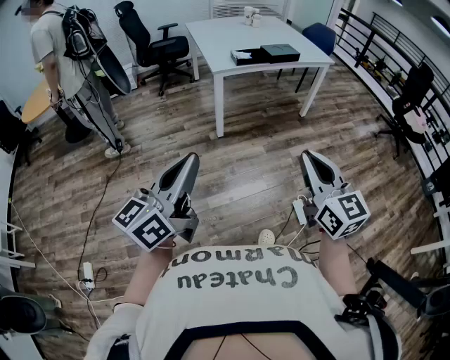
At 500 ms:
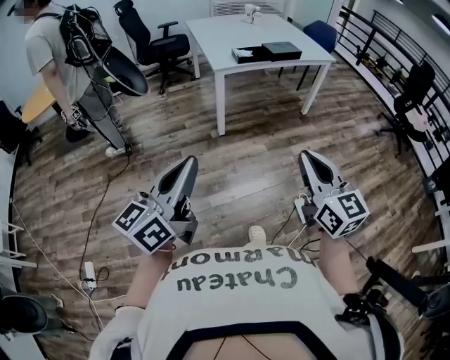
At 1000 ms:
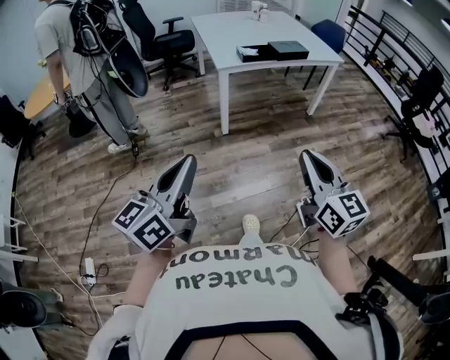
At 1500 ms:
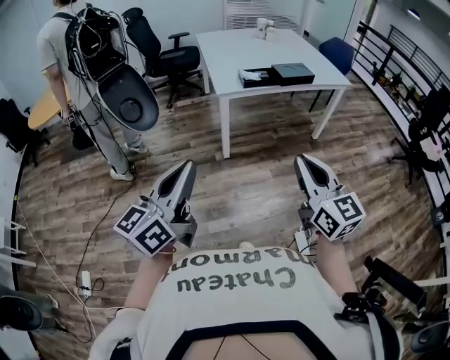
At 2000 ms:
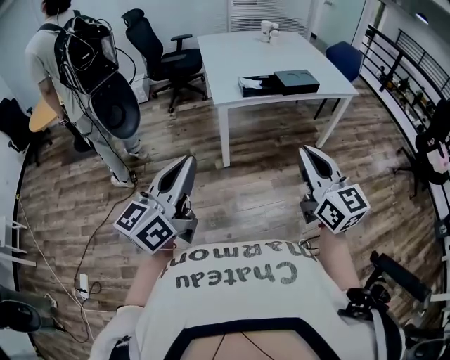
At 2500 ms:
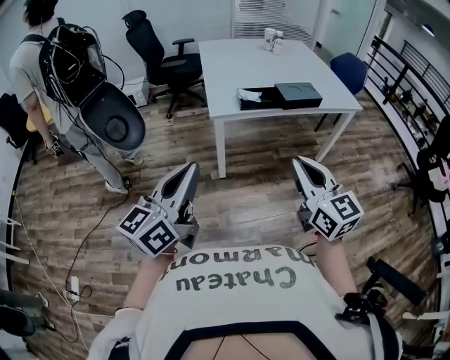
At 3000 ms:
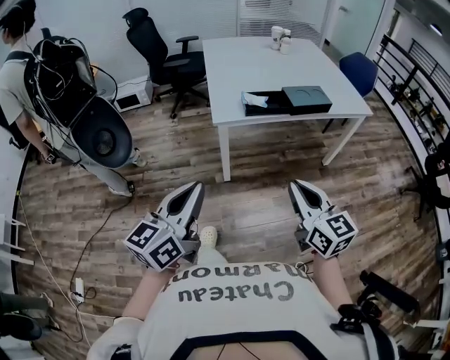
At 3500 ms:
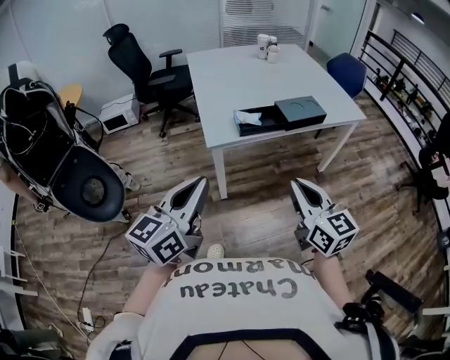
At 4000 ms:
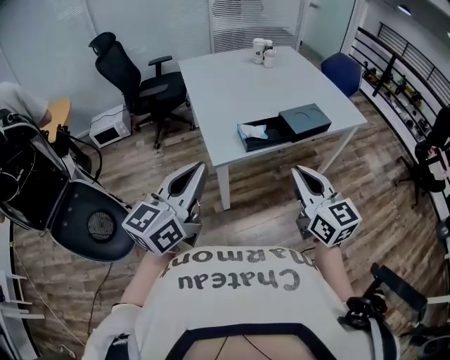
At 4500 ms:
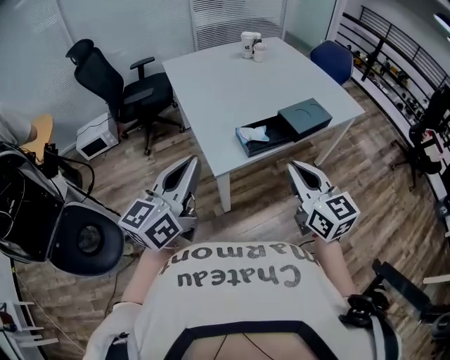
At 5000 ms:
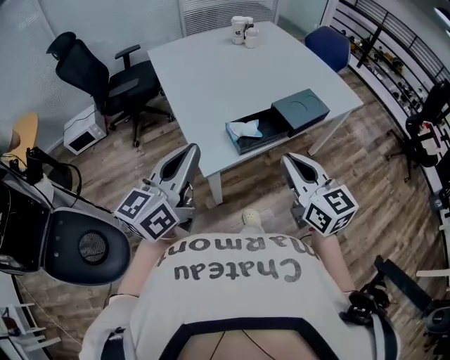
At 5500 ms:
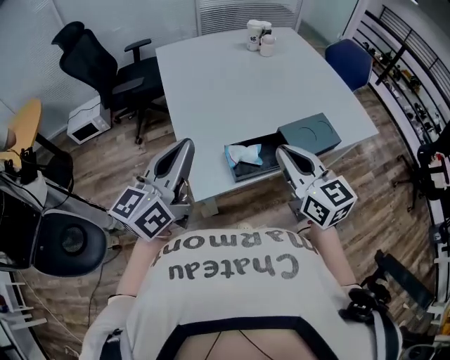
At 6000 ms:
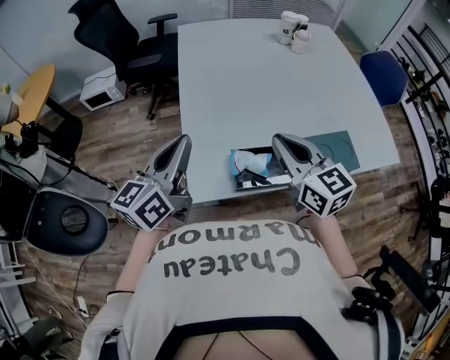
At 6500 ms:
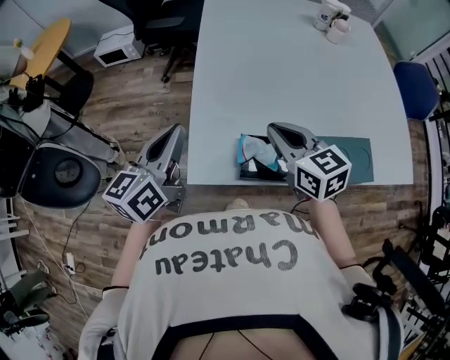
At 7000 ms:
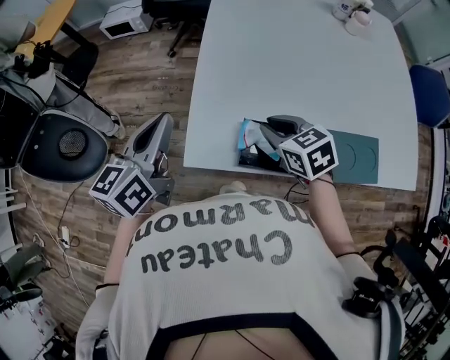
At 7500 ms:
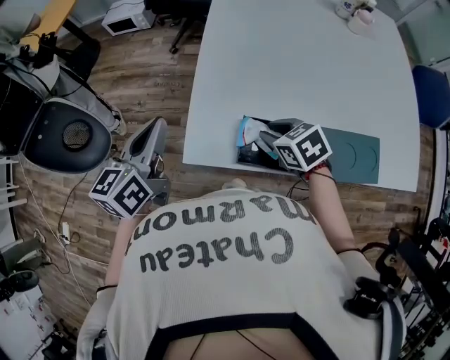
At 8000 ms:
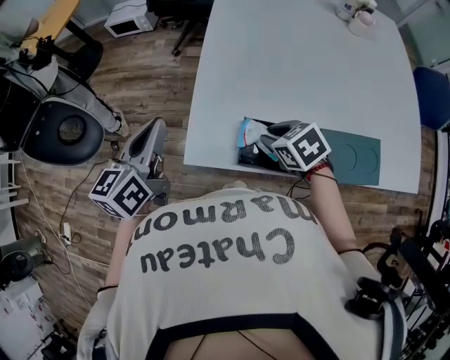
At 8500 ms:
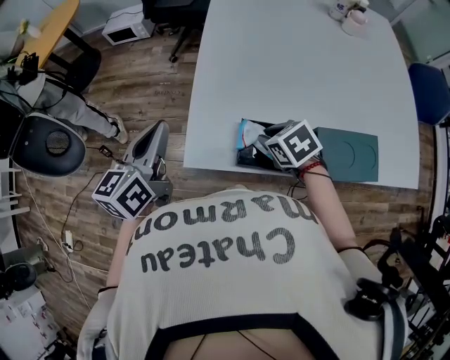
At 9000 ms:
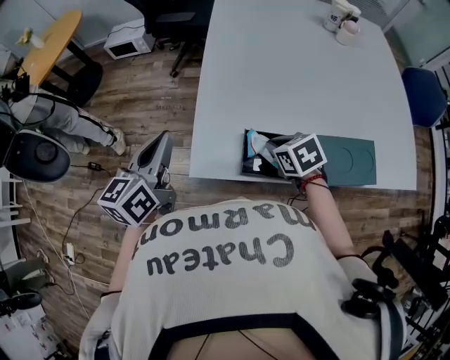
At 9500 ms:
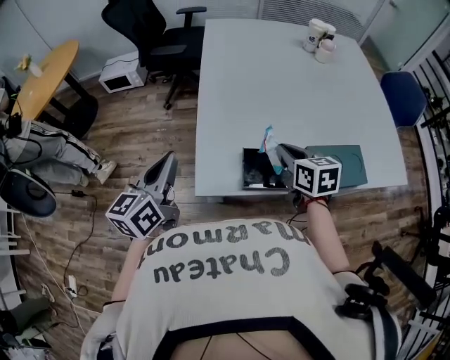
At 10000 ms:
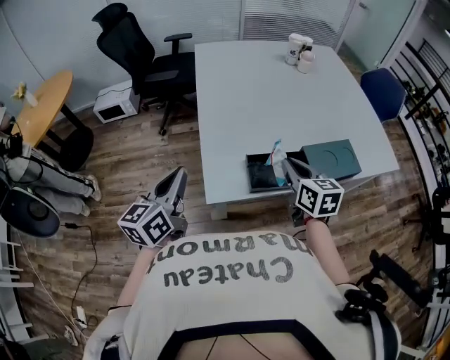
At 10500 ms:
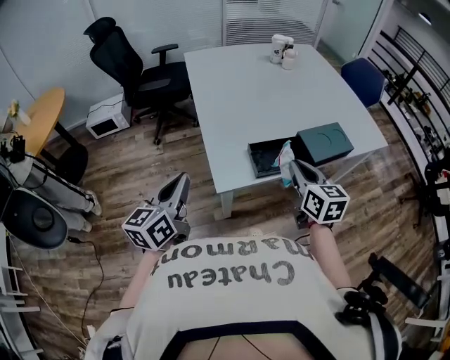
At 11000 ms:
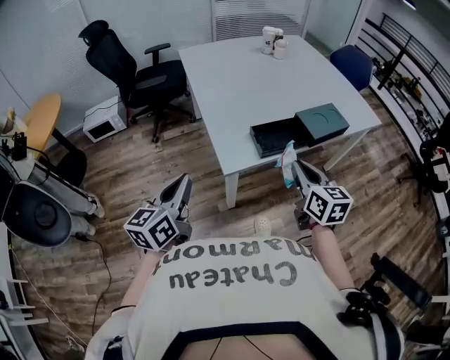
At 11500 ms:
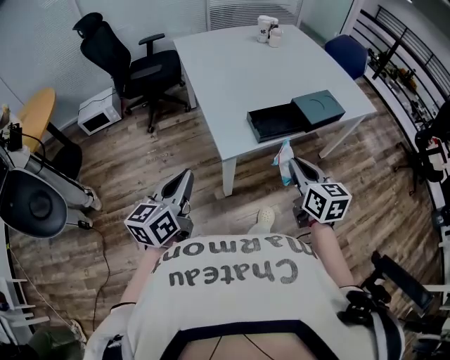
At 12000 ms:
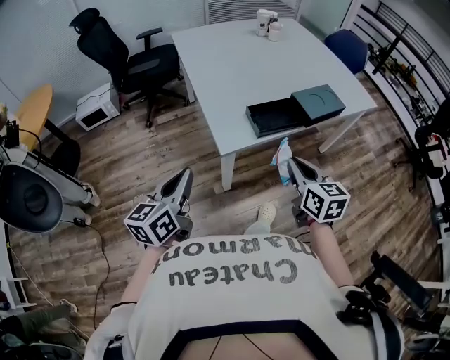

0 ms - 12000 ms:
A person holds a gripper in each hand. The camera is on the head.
0 ms - 2000 ms: Both grippers move forward, about 25 cm.
2000 ms - 4000 ms: Both grippers travel together forward, about 30 cm.
4000 ms - 6000 ms: Both grippers travel together forward, approximately 35 cm. The right gripper swivels some 20 degrees.
6000 ms - 8000 ms: The left gripper shifts by roughly 10 cm, and swivels about 30 degrees. Meanwhile the right gripper goes some 20 cm downward, tilts its fingers roughly 50 degrees downward, and opens up.
8000 ms - 10000 ms: The left gripper shifts by about 5 cm; the right gripper travels upward by roughly 15 cm, and tips its fingers upward by about 30 degrees.
10000 ms - 12000 ms: The grippers both shift backward by about 20 cm.

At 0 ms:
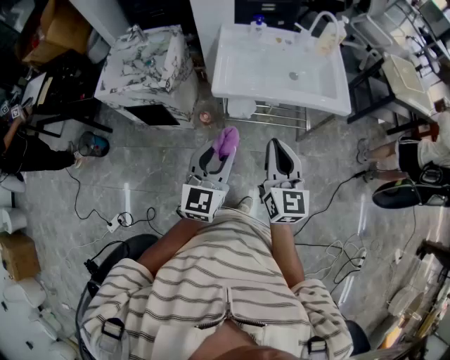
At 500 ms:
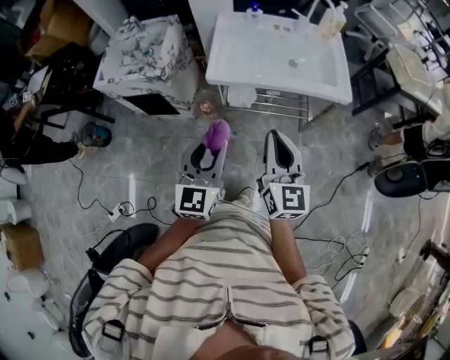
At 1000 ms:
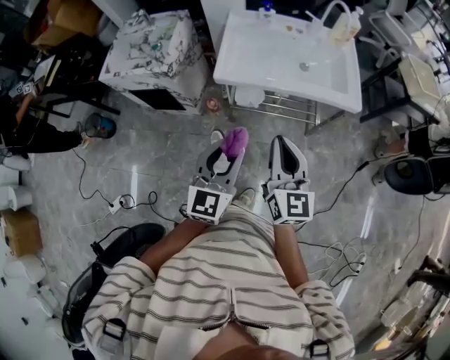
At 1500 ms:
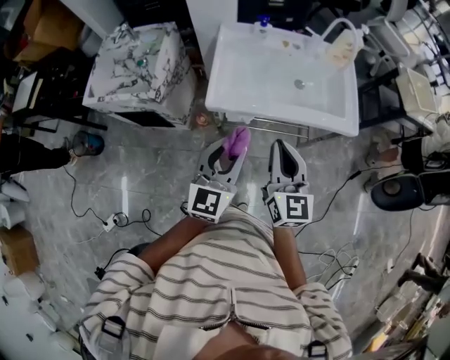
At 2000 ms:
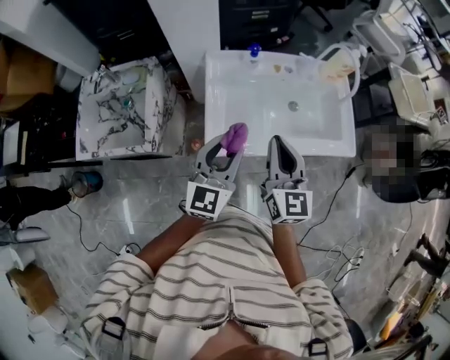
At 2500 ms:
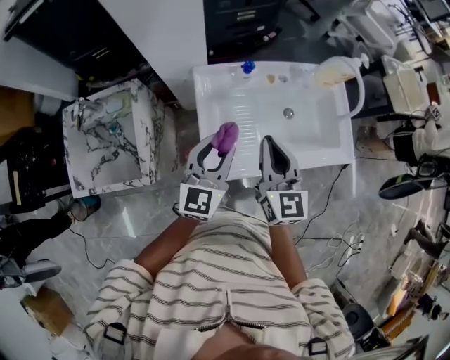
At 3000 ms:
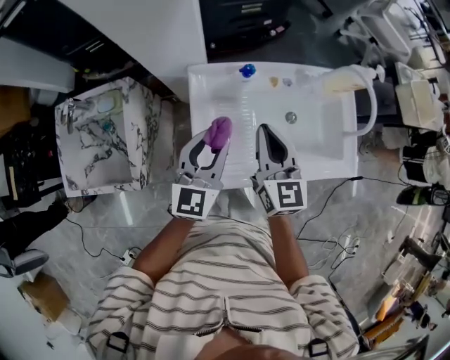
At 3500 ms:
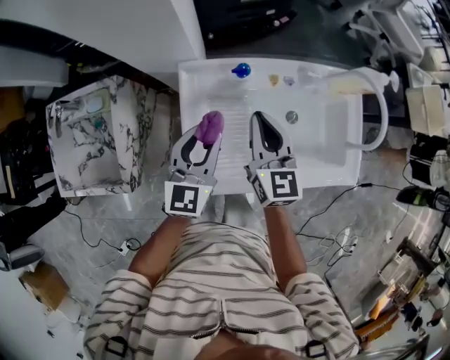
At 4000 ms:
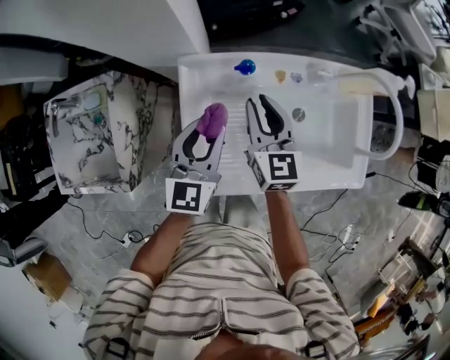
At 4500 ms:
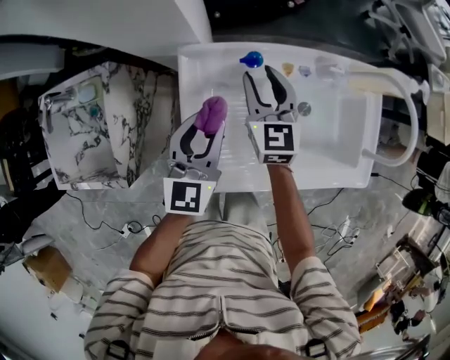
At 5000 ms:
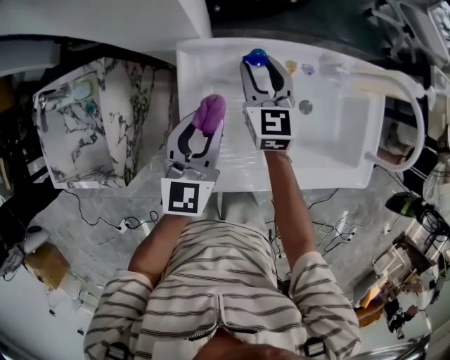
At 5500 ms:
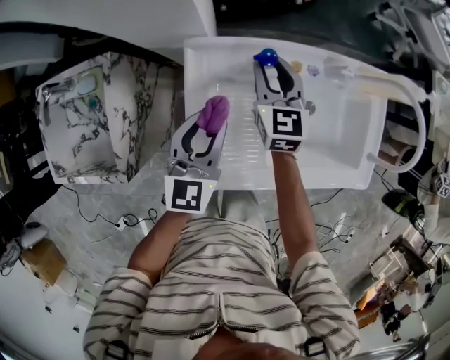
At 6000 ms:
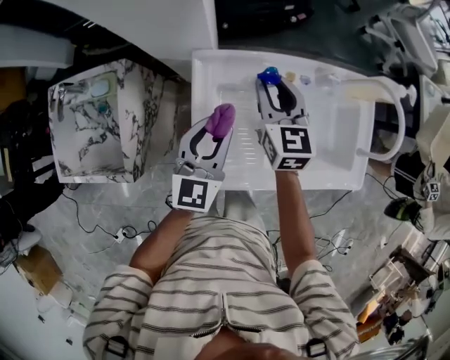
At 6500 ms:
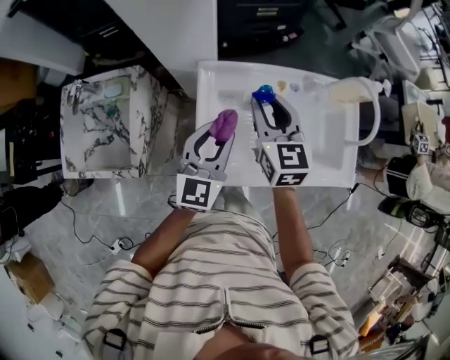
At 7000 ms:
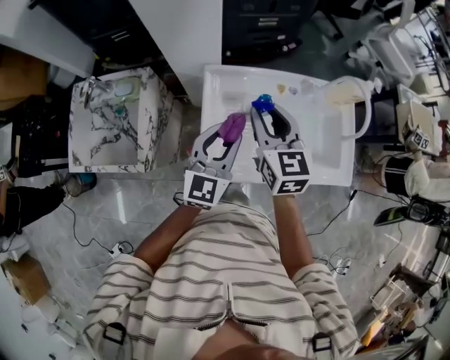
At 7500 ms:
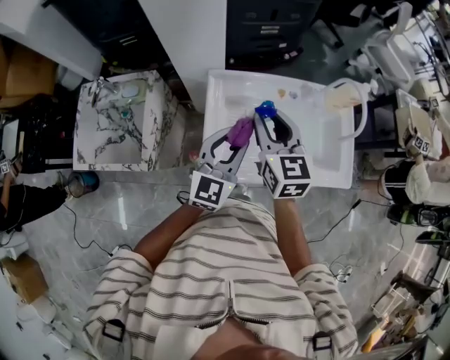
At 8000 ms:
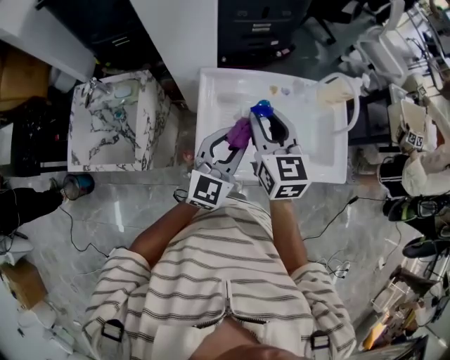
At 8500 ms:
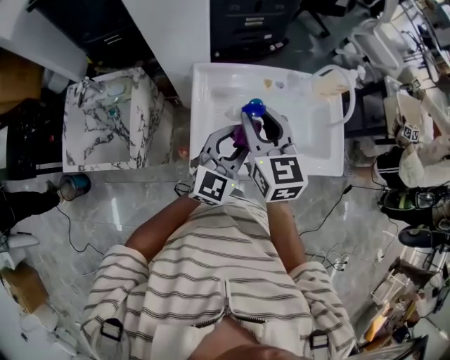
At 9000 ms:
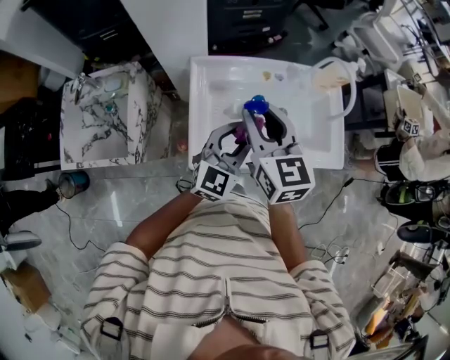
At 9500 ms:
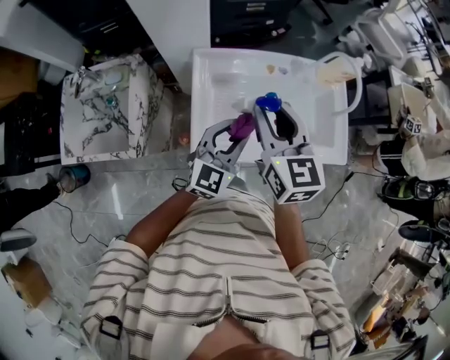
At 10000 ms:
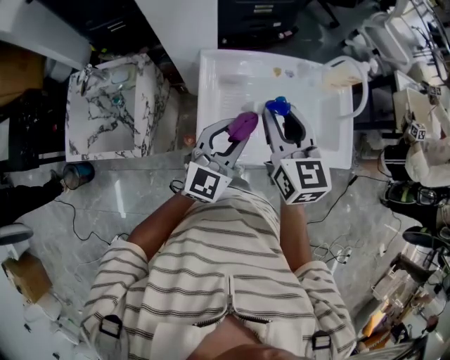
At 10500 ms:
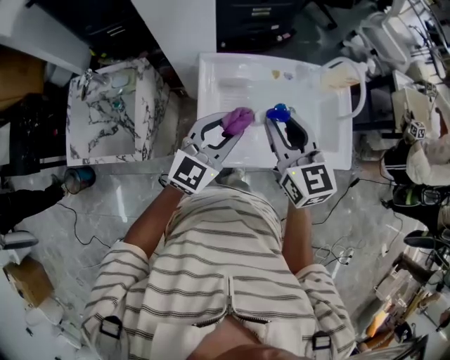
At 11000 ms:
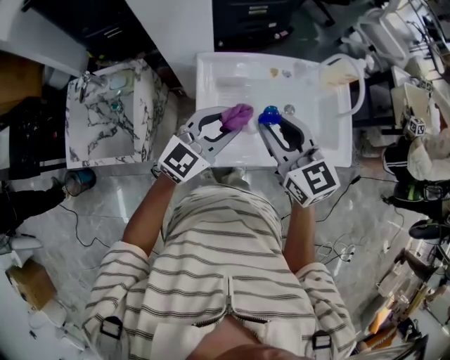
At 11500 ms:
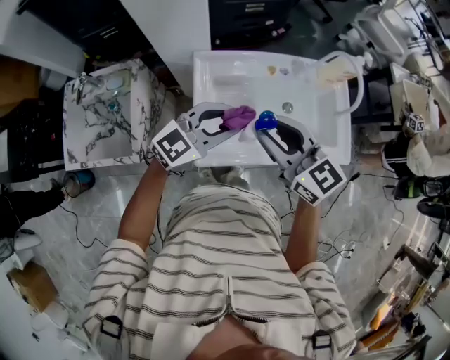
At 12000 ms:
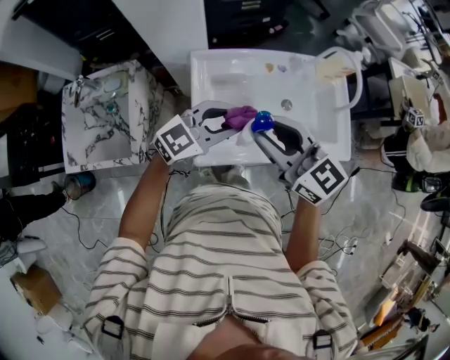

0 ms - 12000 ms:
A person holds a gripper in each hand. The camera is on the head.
0 ms - 2000 ms: Both grippers move forward, about 30 cm.
2000 ms - 4000 ms: The two grippers go some 30 cm forward and downward.
4000 ms - 6000 ms: The right gripper goes downward and returns, roughly 5 cm each way.
6000 ms - 8000 ms: The right gripper heads backward and upward, covering some 20 cm. Meanwhile the left gripper goes approximately 15 cm backward, upward and to the right.
8000 ms - 10000 ms: There are only small adjustments of the grippers.
10000 ms - 12000 ms: The right gripper ends up about 5 cm from where it was, and turns by some 30 degrees. The left gripper swivels approximately 40 degrees.

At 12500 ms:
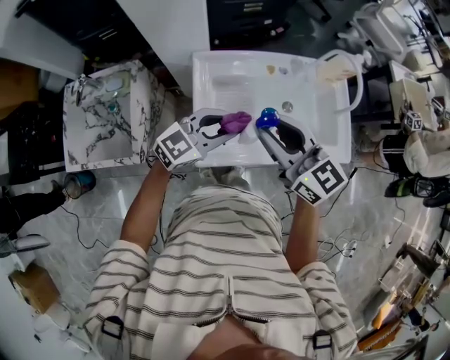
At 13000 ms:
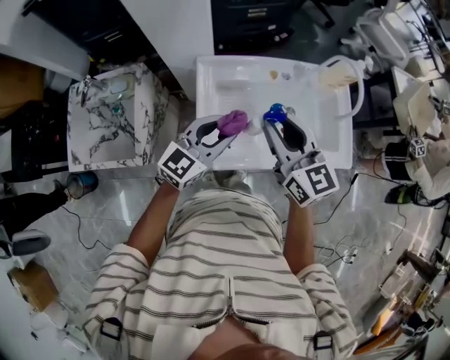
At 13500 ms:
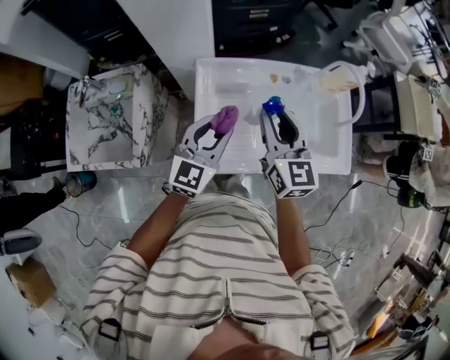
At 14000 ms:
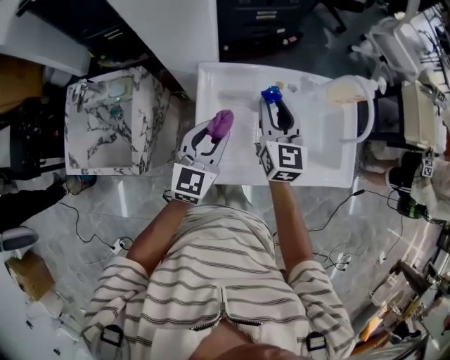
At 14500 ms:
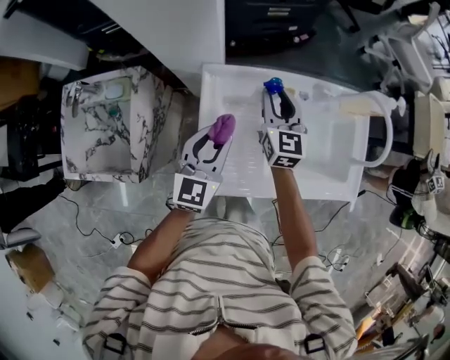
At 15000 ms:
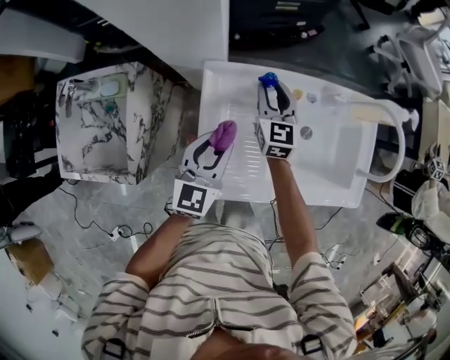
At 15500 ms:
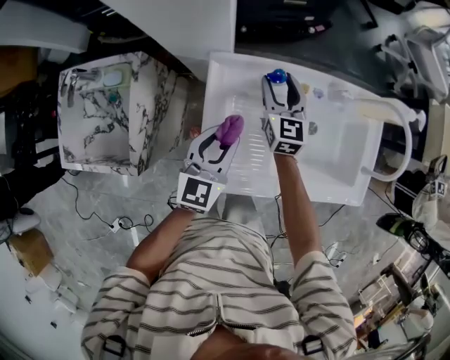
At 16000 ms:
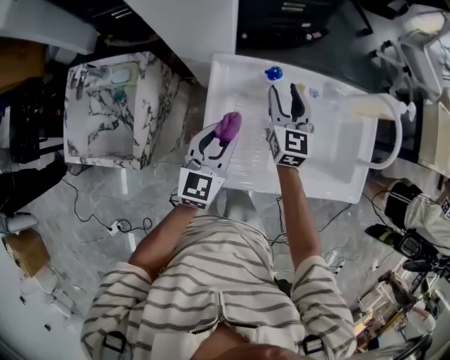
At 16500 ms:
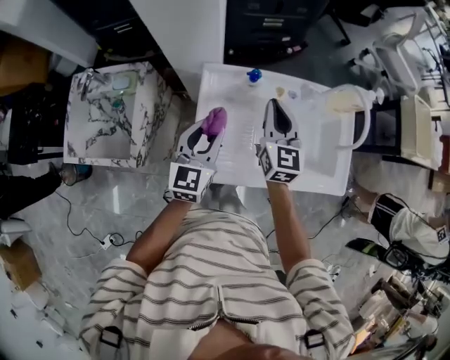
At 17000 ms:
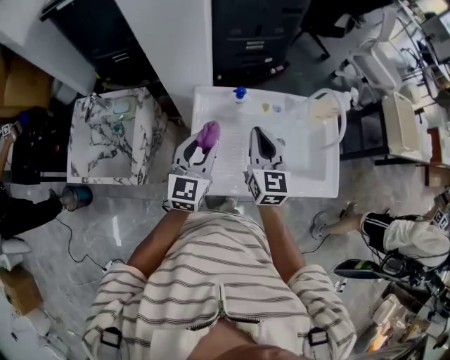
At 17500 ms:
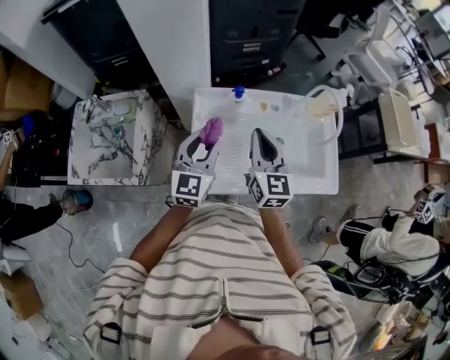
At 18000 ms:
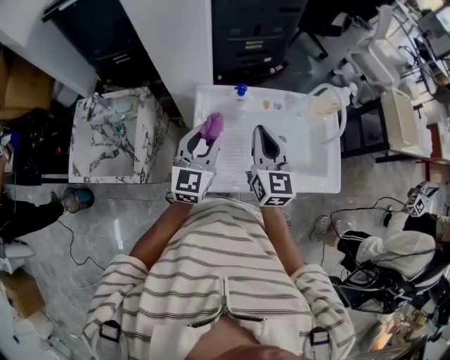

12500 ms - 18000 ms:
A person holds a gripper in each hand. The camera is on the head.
12500 ms - 14500 ms: The right gripper heads forward and downward, covering about 30 cm, and rotates some 30 degrees, while the left gripper moves forward and to the left, about 10 cm, and swivels roughly 50 degrees.
16000 ms - 18000 ms: The right gripper goes about 20 cm backward and upward, and closes its fingers. The left gripper moves upward, approximately 10 cm.
